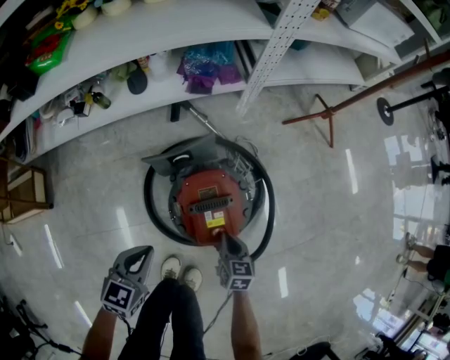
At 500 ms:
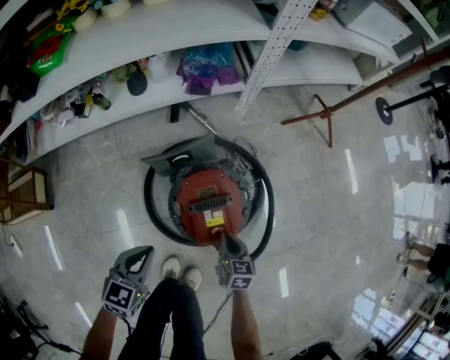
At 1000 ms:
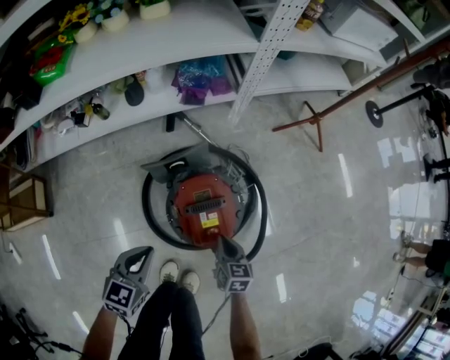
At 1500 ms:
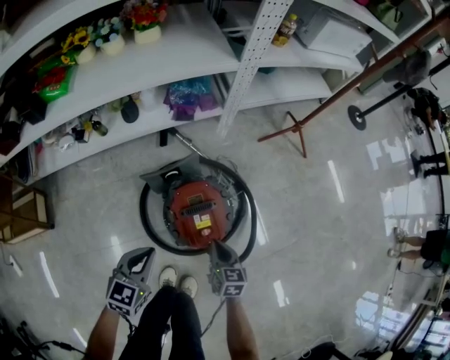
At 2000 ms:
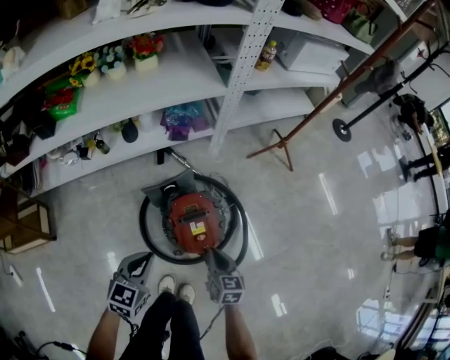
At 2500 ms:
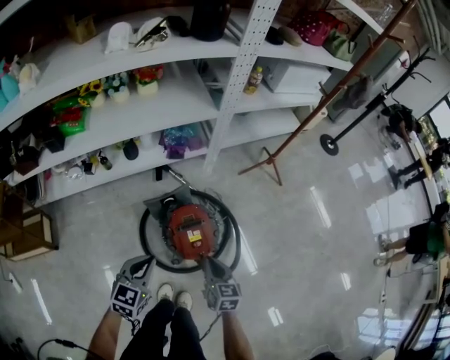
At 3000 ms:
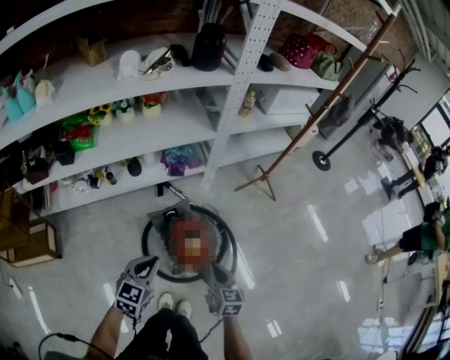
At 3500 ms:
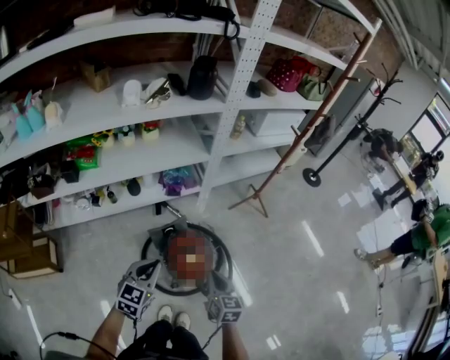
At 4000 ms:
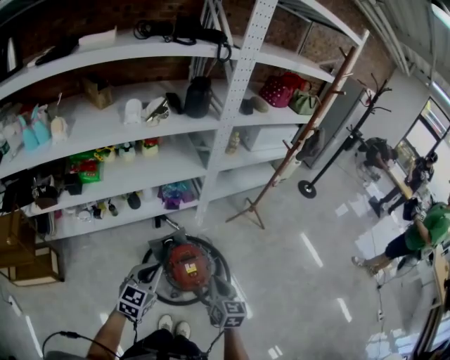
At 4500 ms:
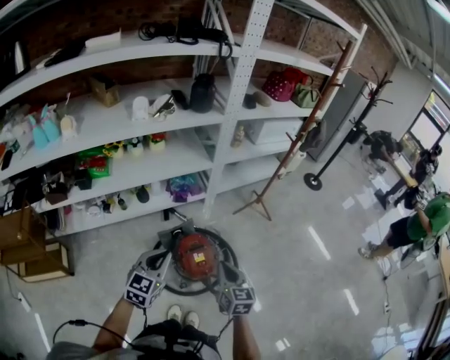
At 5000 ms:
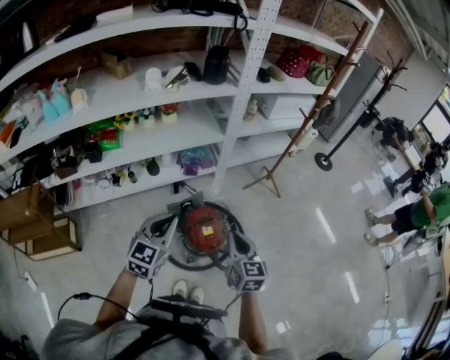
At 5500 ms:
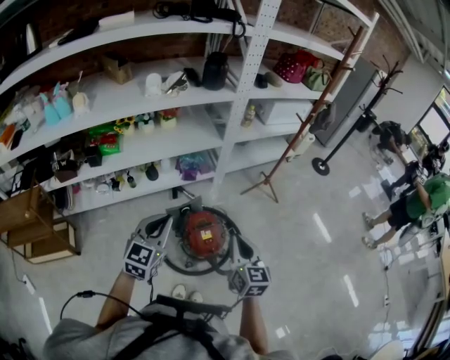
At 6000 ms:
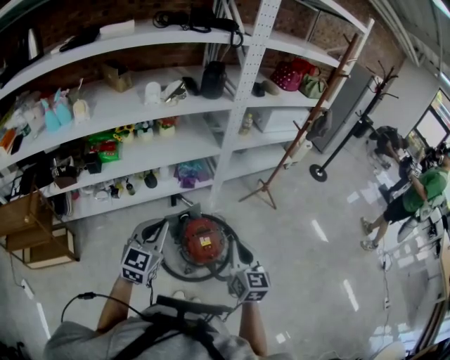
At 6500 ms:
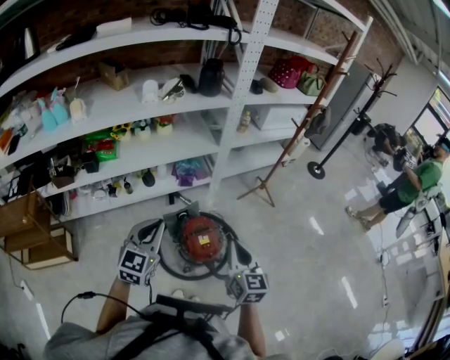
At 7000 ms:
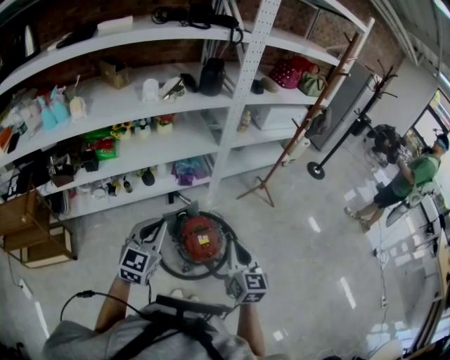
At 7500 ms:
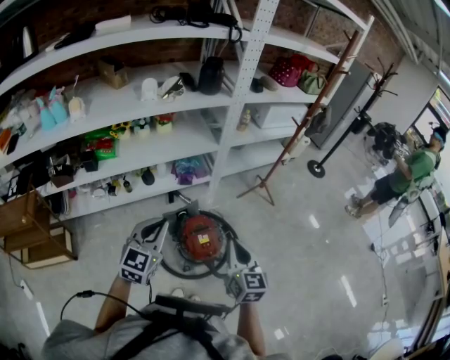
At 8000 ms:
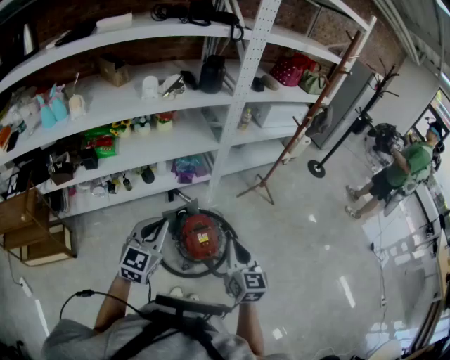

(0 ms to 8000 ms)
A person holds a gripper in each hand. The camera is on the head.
0 ms - 2000 ms: The two grippers go about 20 cm upward.
2000 ms - 4000 ms: The two grippers go some 25 cm upward.
4000 ms - 6000 ms: Both grippers move upward, some 10 cm.
6000 ms - 8000 ms: The two grippers keep their place.

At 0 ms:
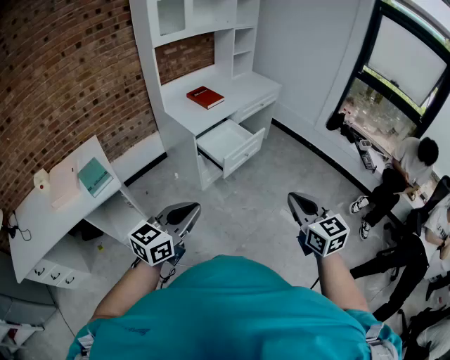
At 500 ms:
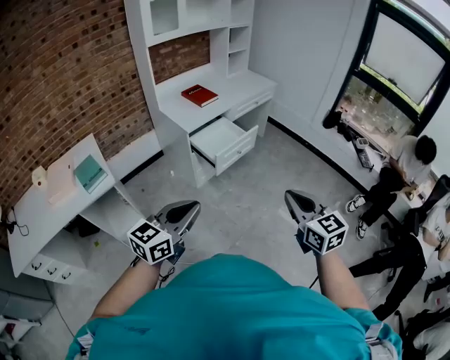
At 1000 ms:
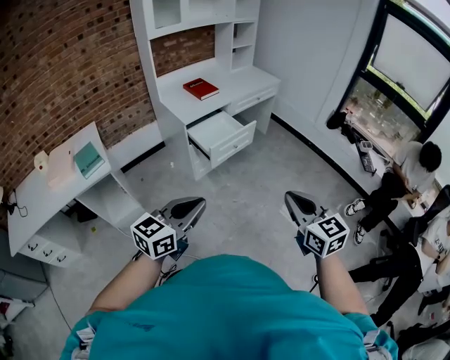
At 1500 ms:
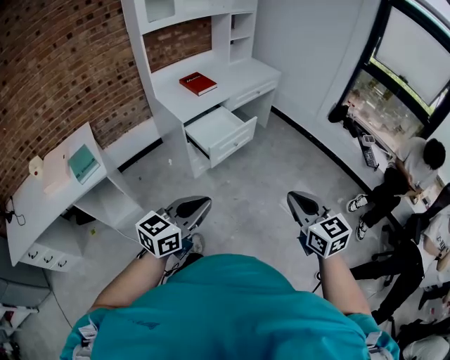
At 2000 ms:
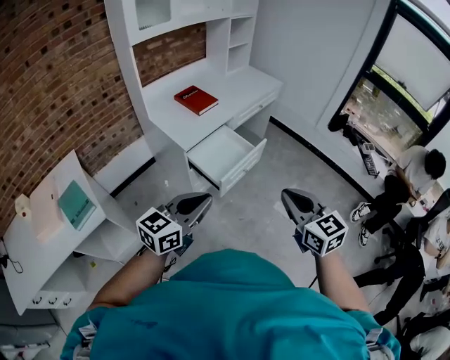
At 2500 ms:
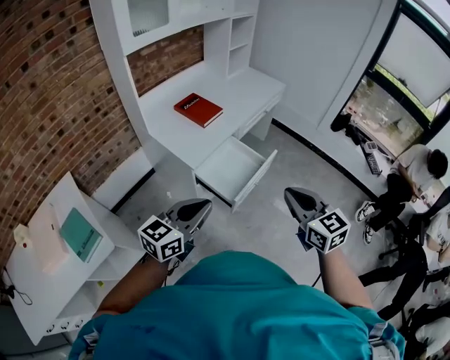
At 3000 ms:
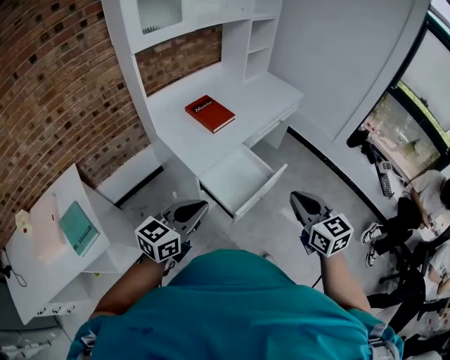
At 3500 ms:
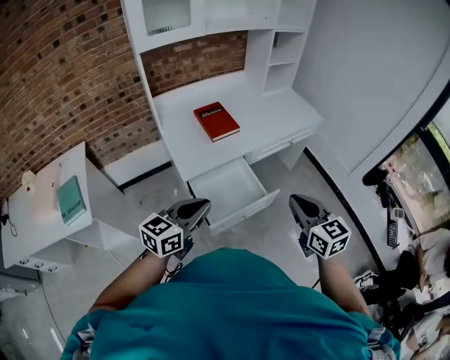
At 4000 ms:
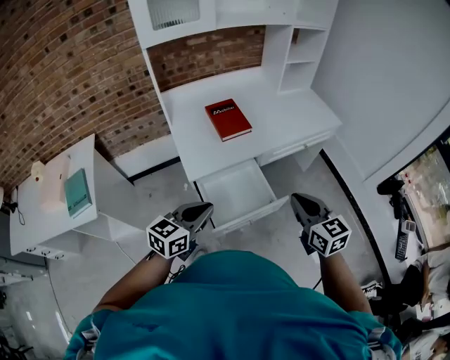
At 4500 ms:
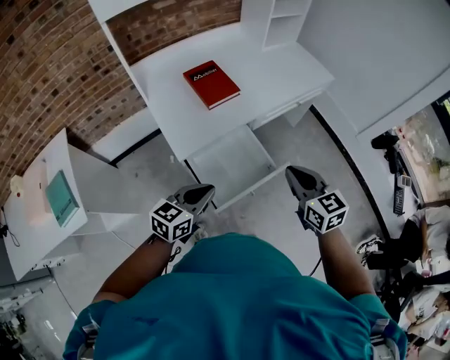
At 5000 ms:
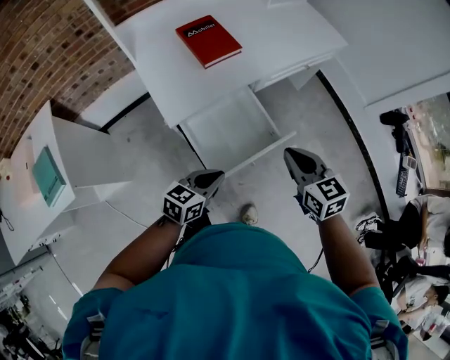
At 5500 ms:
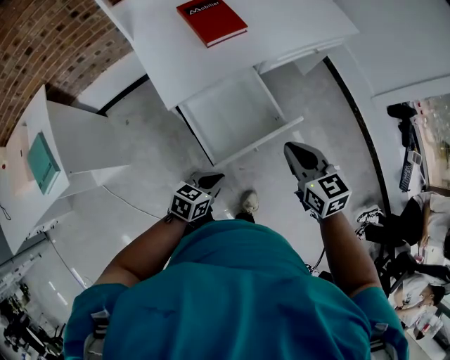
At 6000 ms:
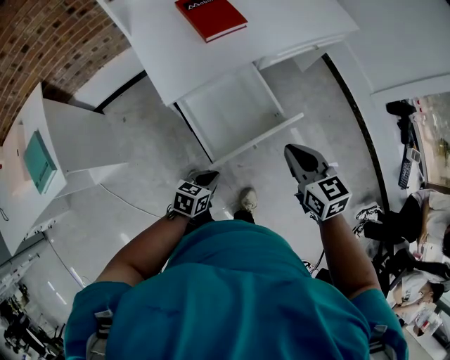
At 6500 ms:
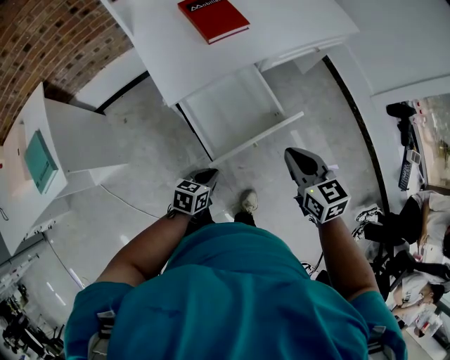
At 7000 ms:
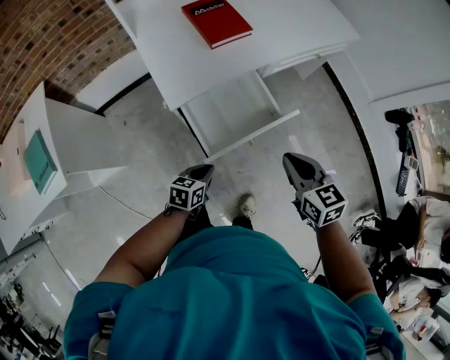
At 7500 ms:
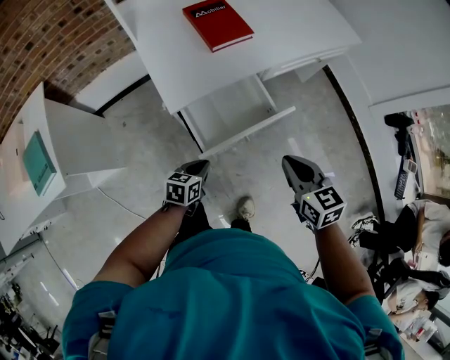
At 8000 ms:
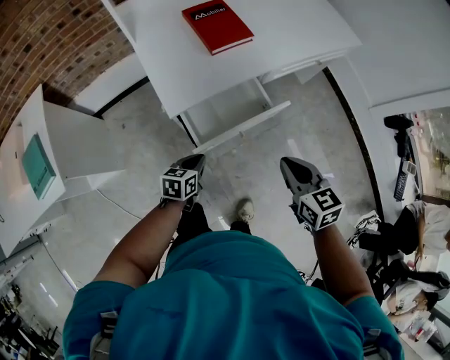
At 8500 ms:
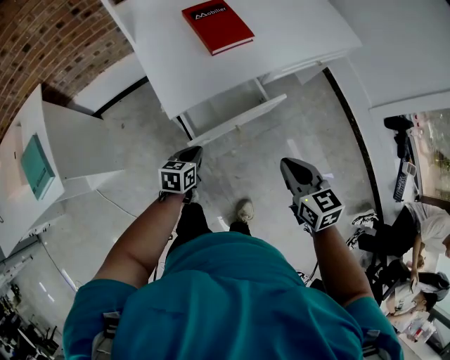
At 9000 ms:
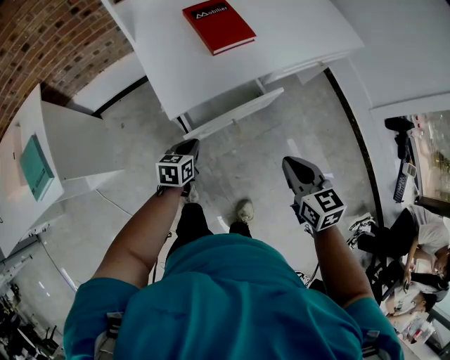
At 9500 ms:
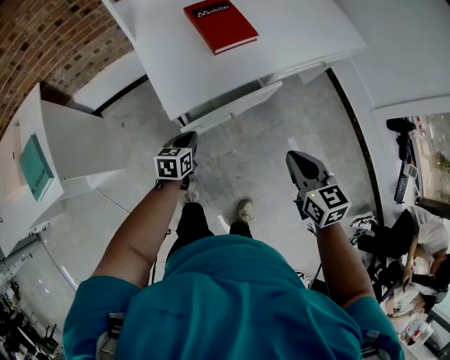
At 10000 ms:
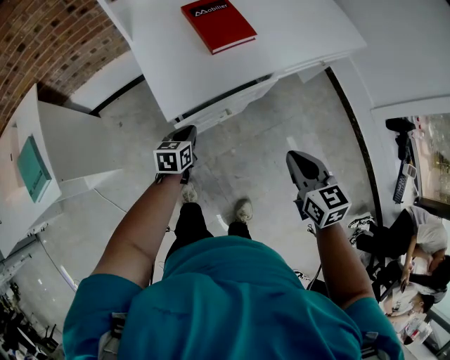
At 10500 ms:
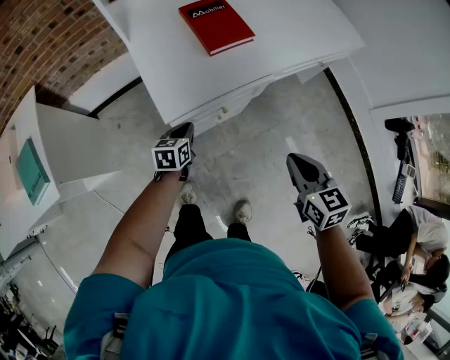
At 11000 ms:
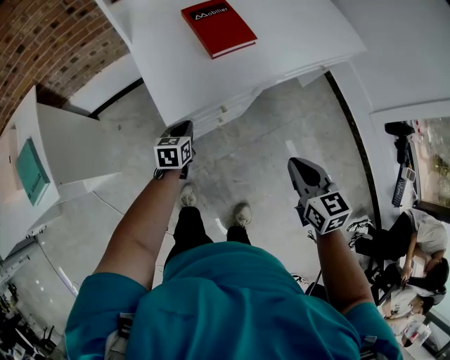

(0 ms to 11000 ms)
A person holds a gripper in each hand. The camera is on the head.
0 ms - 2000 ms: The grippers both shift forward by about 20 cm.
2000 ms - 3500 ms: The two grippers go about 30 cm forward. The left gripper rotates some 20 degrees.
3500 ms - 5500 ms: The left gripper moves downward, about 30 cm, and turns by some 30 degrees, while the right gripper travels downward by some 15 cm.
5500 ms - 7500 ms: The left gripper moves to the left and forward, roughly 10 cm.
7500 ms - 9000 ms: The left gripper moves forward, roughly 10 cm.
9000 ms - 11000 ms: The left gripper travels forward by approximately 10 cm.

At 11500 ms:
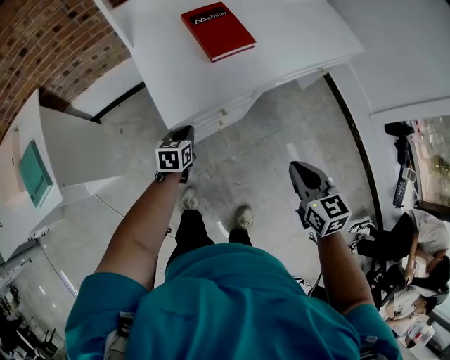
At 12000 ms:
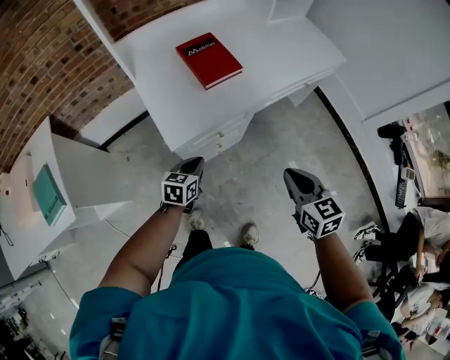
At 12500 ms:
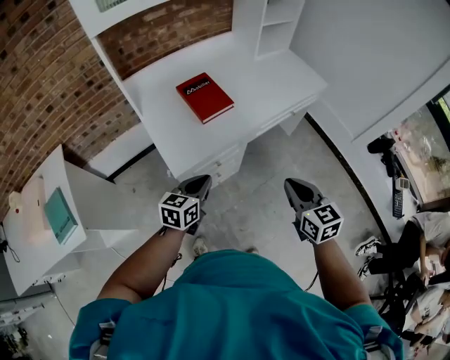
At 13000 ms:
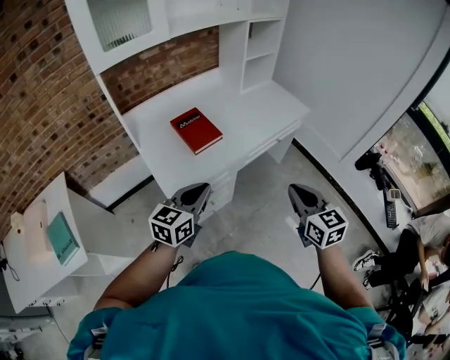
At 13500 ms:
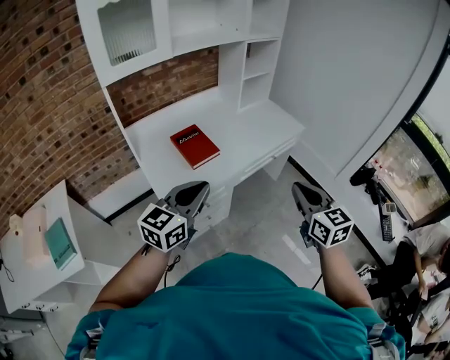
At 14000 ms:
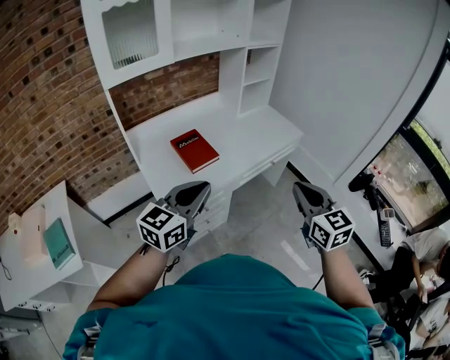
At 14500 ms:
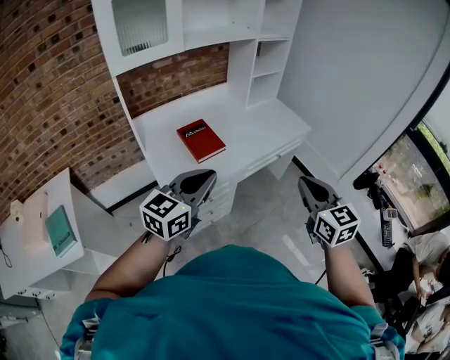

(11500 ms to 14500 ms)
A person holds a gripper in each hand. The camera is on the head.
11500 ms - 13000 ms: The right gripper is displaced upward by approximately 20 cm. The left gripper goes roughly 35 cm upward, and changes its angle by about 40 degrees.
13000 ms - 14500 ms: Both grippers move upward, approximately 10 cm.

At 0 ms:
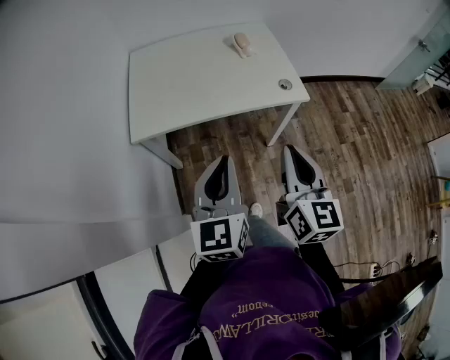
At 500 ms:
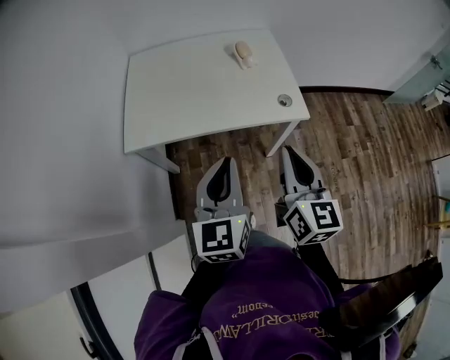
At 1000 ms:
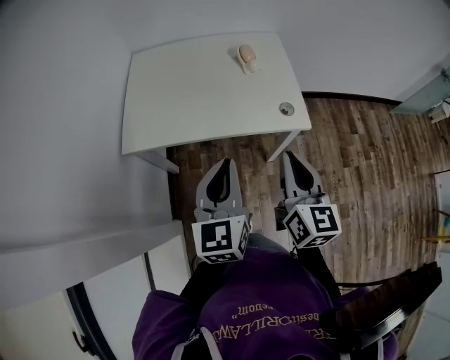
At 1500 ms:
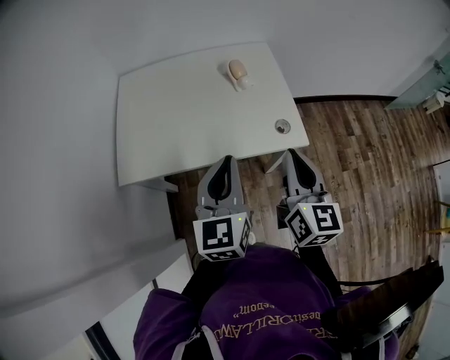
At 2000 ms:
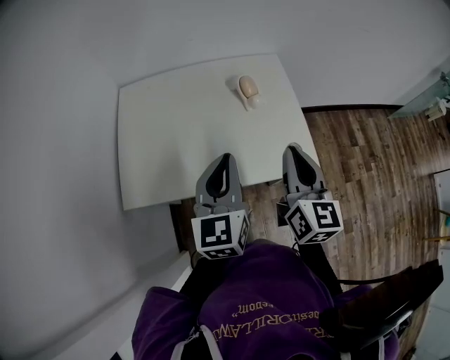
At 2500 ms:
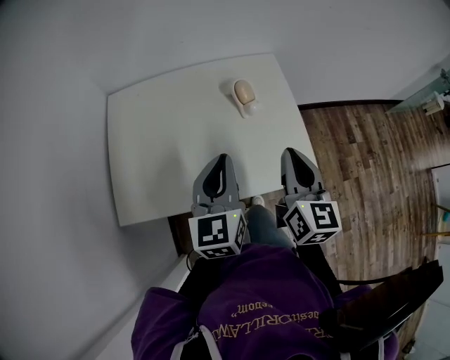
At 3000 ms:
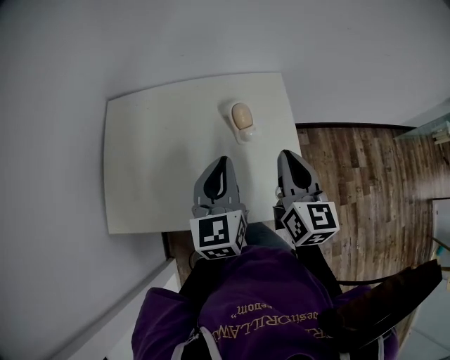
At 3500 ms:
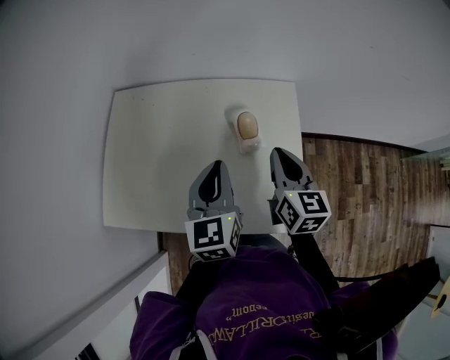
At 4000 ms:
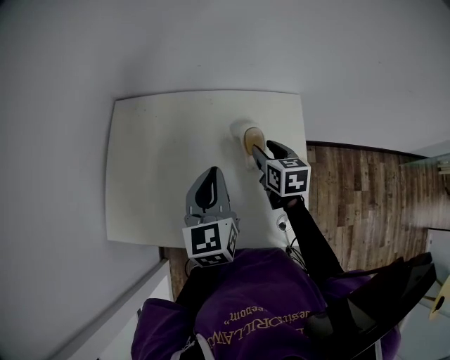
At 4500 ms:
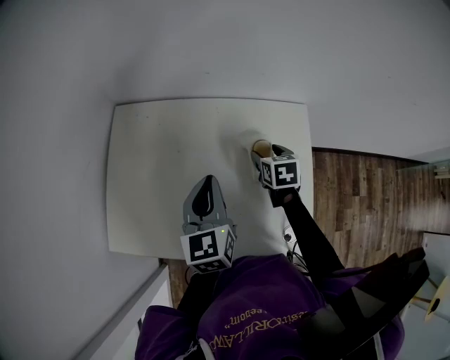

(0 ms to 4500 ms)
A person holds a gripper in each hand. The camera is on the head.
0 ms - 2000 ms: Both grippers travel together forward, roughly 30 cm.
2000 ms - 4500 ms: The left gripper shifts about 25 cm forward, and rotates approximately 20 degrees, while the right gripper shifts roughly 40 cm forward and downward, tips its fingers downward by about 40 degrees, and opens up.
